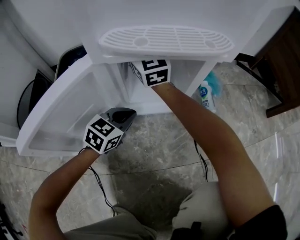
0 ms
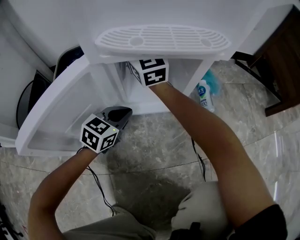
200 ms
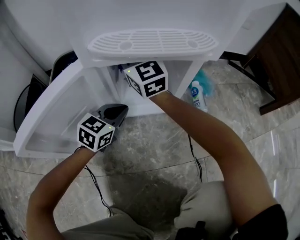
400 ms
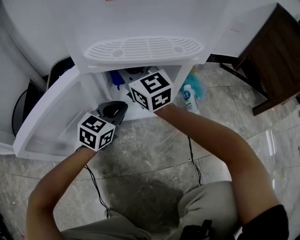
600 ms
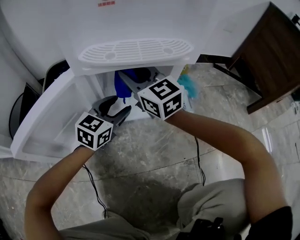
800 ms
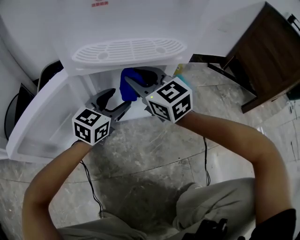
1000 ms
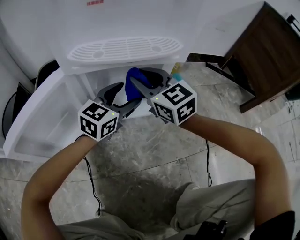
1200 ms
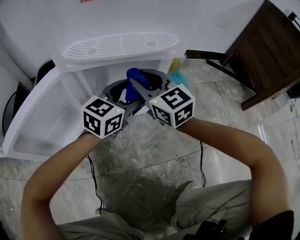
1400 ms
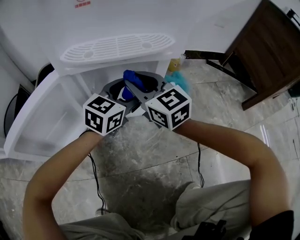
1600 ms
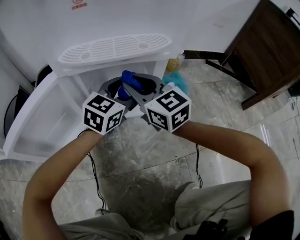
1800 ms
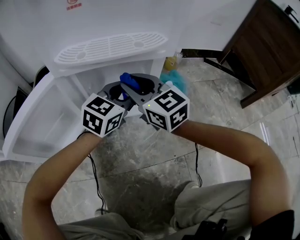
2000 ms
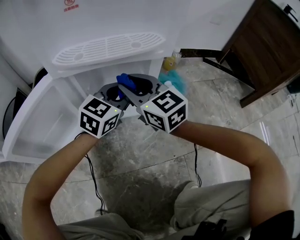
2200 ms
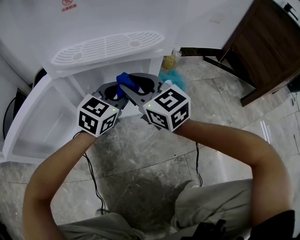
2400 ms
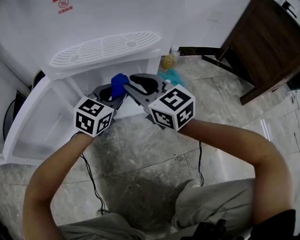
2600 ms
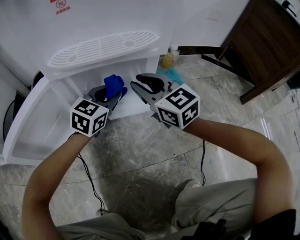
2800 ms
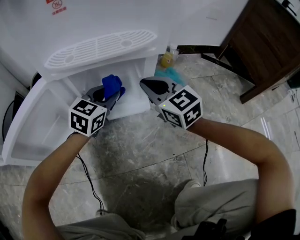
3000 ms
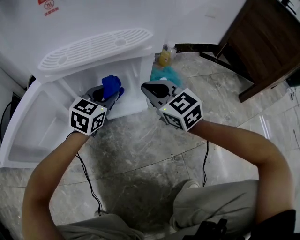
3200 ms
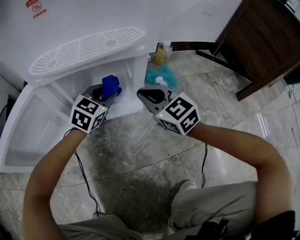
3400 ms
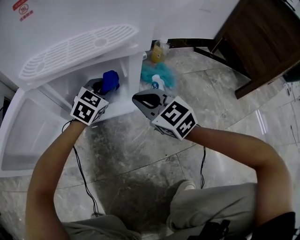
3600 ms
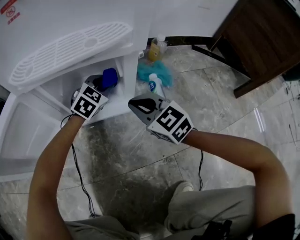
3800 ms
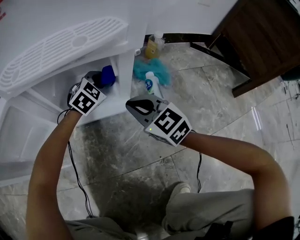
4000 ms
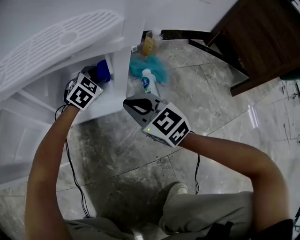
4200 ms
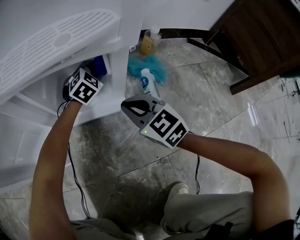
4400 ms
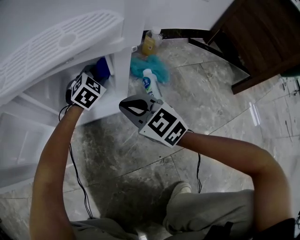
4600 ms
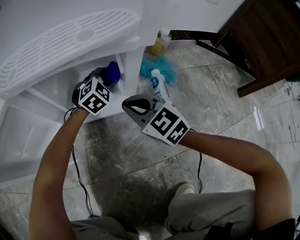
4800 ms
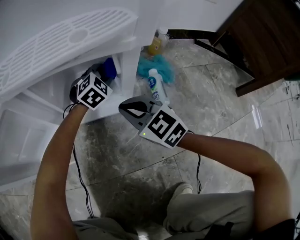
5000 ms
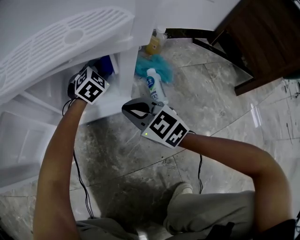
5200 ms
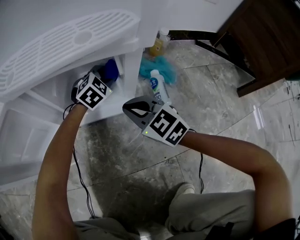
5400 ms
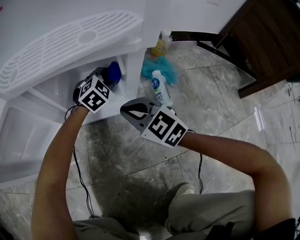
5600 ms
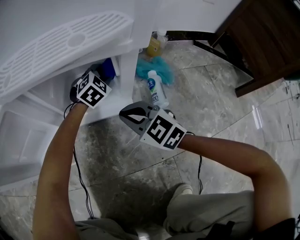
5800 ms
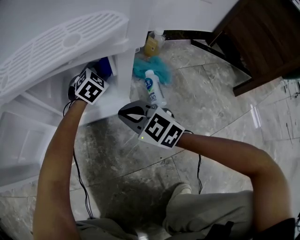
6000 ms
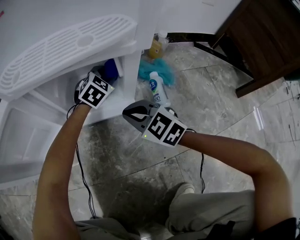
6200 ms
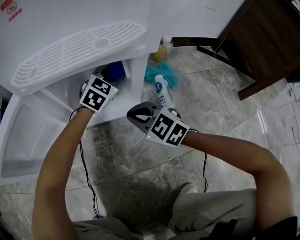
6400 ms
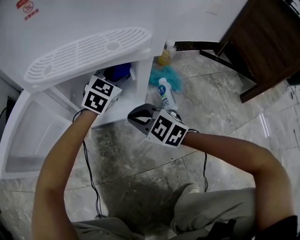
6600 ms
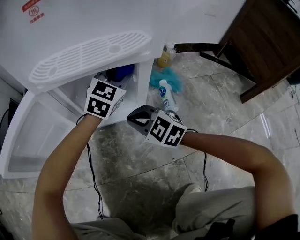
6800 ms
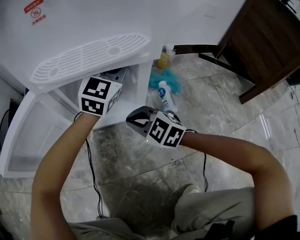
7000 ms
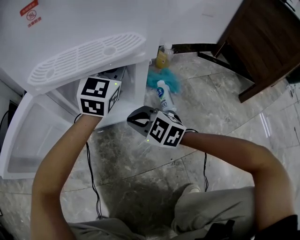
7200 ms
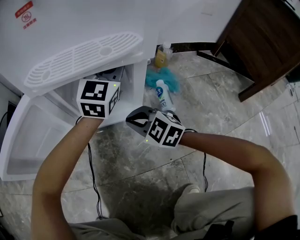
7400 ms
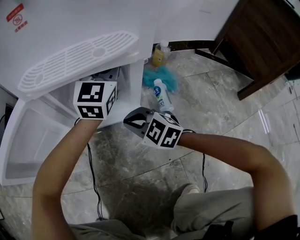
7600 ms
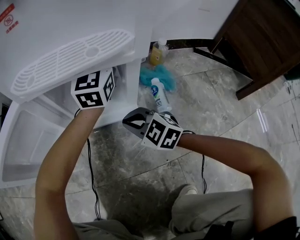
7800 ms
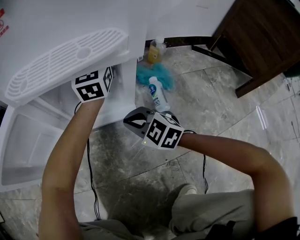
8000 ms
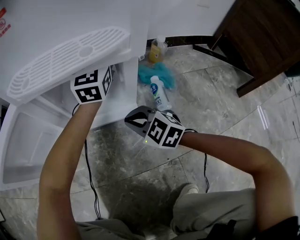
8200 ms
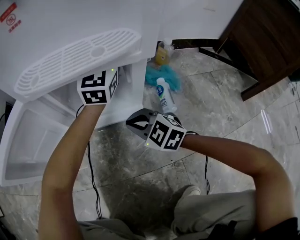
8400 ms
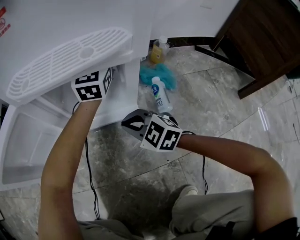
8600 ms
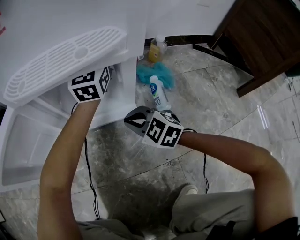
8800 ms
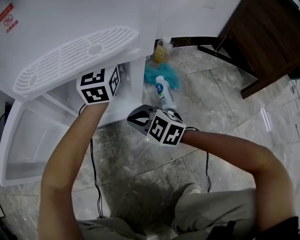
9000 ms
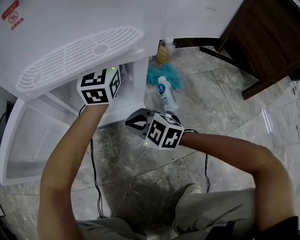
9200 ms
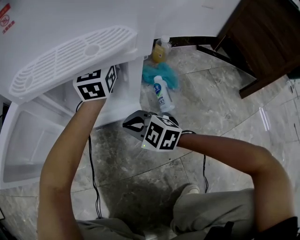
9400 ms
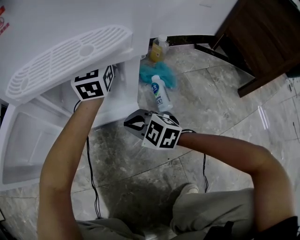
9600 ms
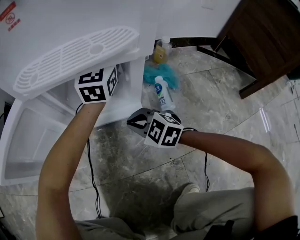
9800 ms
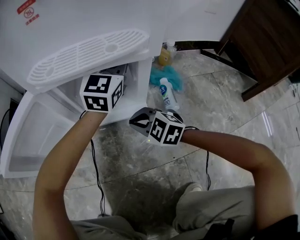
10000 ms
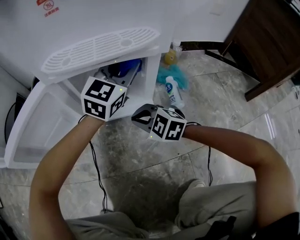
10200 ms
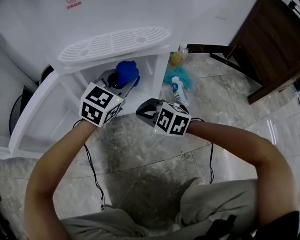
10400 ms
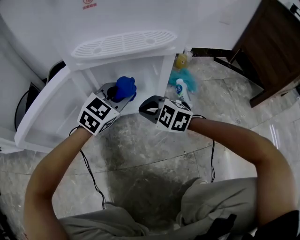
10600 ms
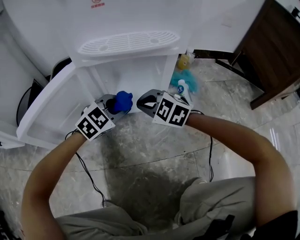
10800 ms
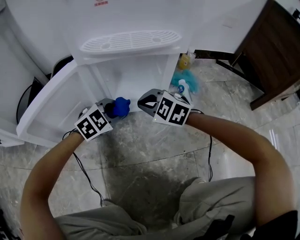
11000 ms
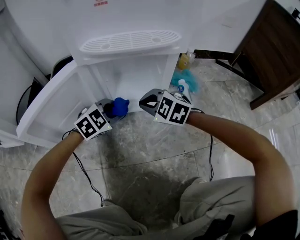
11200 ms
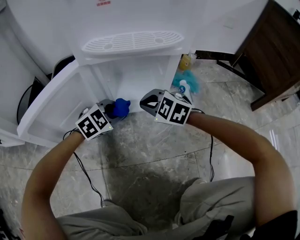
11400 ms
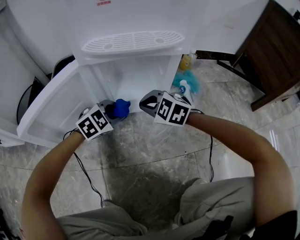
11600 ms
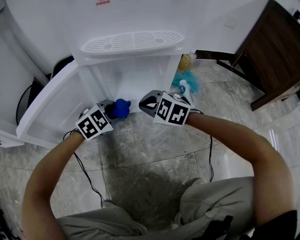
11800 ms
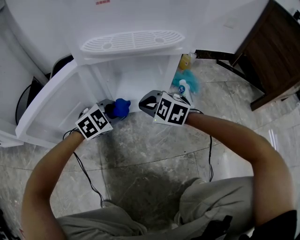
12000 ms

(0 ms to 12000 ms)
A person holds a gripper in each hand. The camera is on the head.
0 ms - 1600 ms: The right gripper heads to the right and backward, covering roughly 20 cm, and rotates roughly 20 degrees. Meanwhile the left gripper is displaced to the right, upward and forward by about 20 cm, and opens its fingers.
1600 ms - 3000 ms: The right gripper shifts approximately 5 cm to the right, while the left gripper shifts by some 5 cm, and closes.
3000 ms - 4400 ms: The right gripper travels downward by approximately 10 cm, while the left gripper travels forward, downward and to the right by approximately 20 cm, and turns by some 30 degrees.
4400 ms - 6000 ms: The left gripper moves forward and backward over some 5 cm, changing direction 3 times.
6000 ms - 7600 ms: The left gripper goes some 25 cm upward, and points its fingers some 40 degrees further upward.
9000 ms - 10400 ms: The left gripper is displaced backward, to the left and downward by about 15 cm, and changes its angle by about 30 degrees. Meanwhile the right gripper moves some 5 cm.
10400 ms - 12000 ms: The left gripper goes about 20 cm downward, to the left and backward, and rotates approximately 30 degrees.

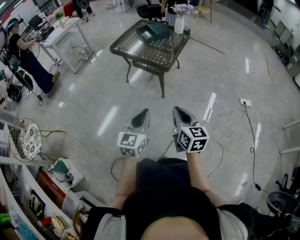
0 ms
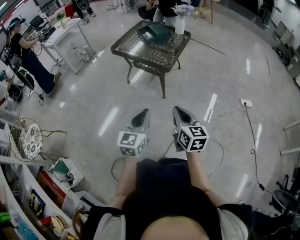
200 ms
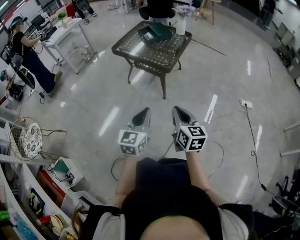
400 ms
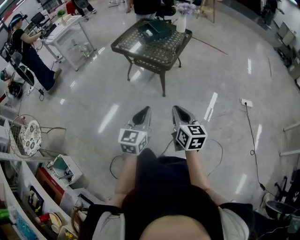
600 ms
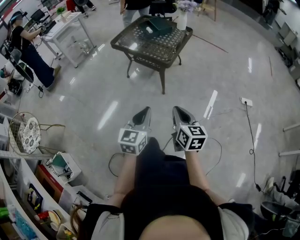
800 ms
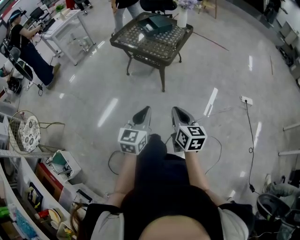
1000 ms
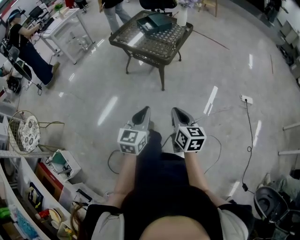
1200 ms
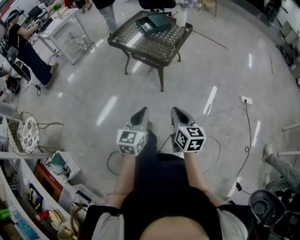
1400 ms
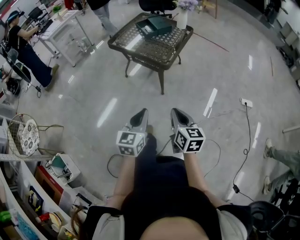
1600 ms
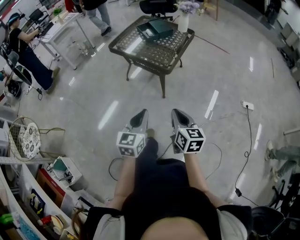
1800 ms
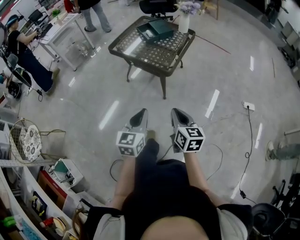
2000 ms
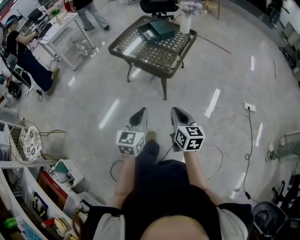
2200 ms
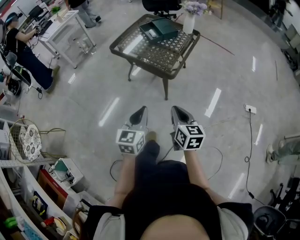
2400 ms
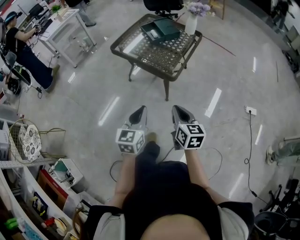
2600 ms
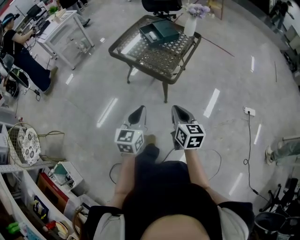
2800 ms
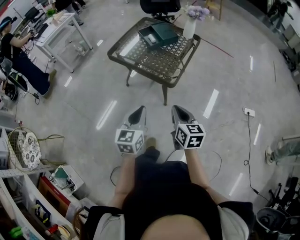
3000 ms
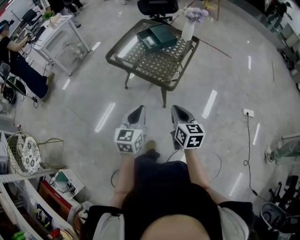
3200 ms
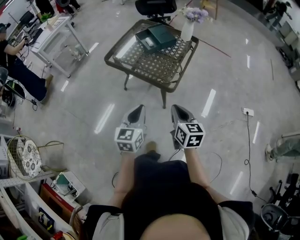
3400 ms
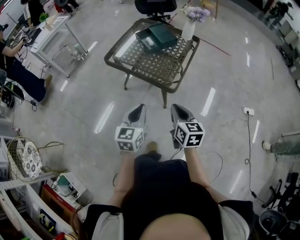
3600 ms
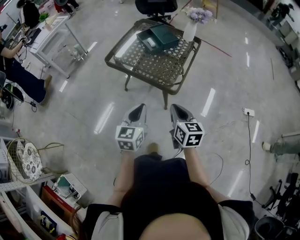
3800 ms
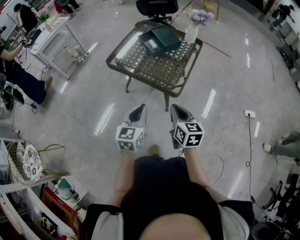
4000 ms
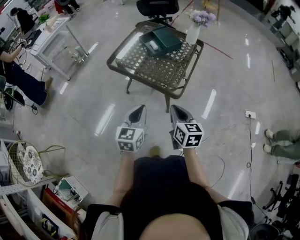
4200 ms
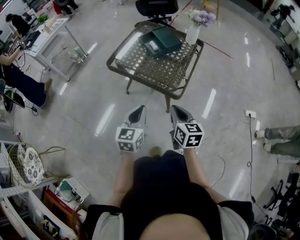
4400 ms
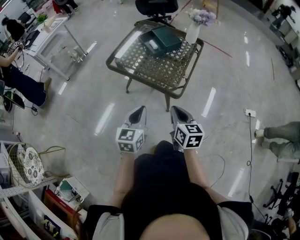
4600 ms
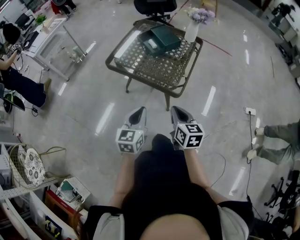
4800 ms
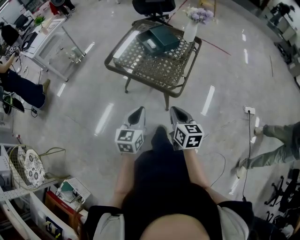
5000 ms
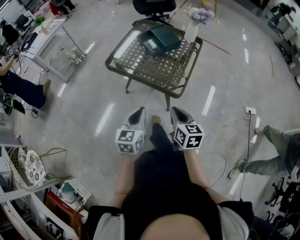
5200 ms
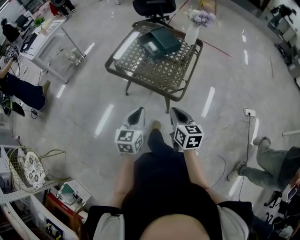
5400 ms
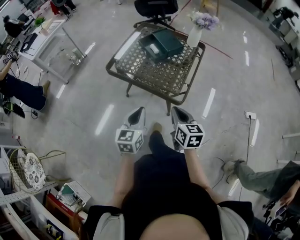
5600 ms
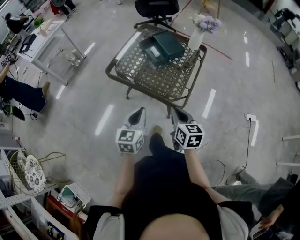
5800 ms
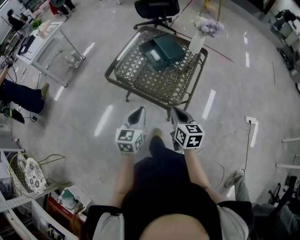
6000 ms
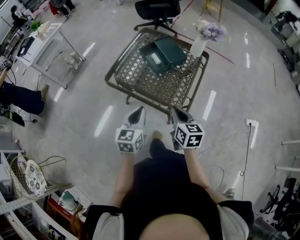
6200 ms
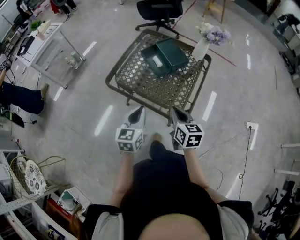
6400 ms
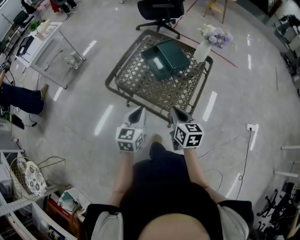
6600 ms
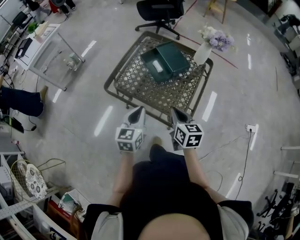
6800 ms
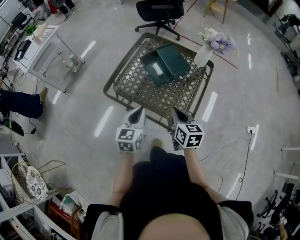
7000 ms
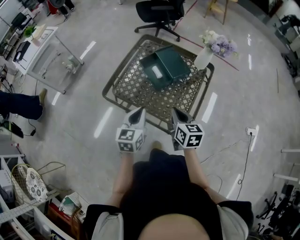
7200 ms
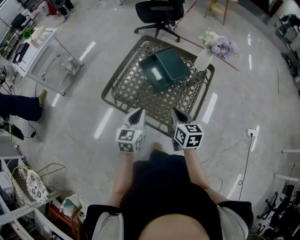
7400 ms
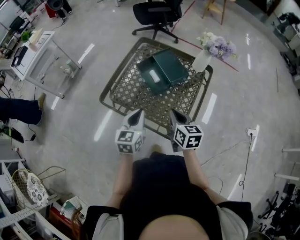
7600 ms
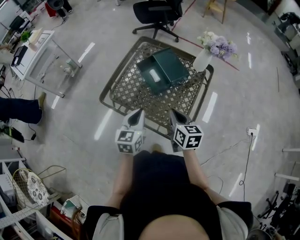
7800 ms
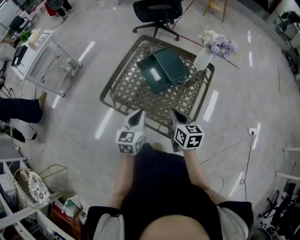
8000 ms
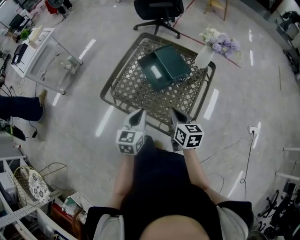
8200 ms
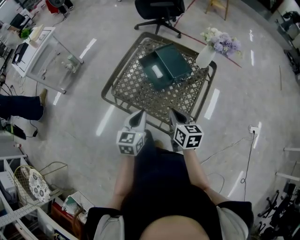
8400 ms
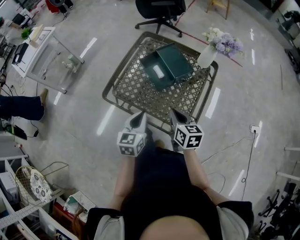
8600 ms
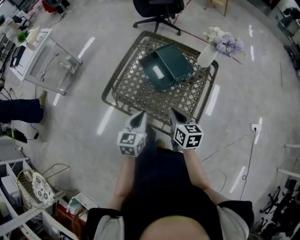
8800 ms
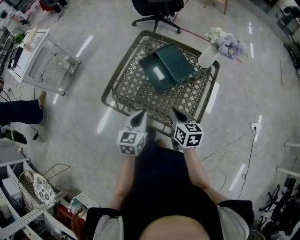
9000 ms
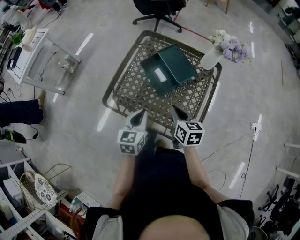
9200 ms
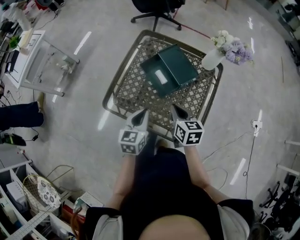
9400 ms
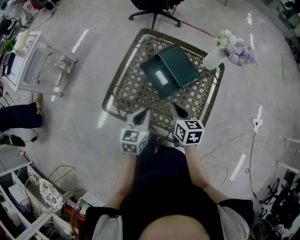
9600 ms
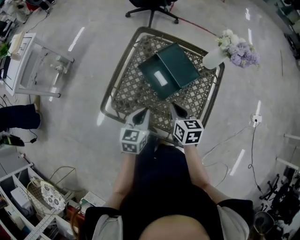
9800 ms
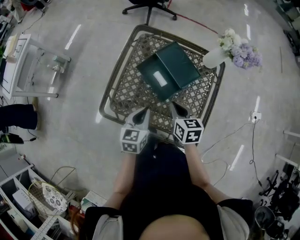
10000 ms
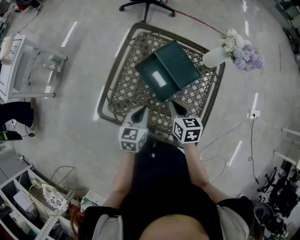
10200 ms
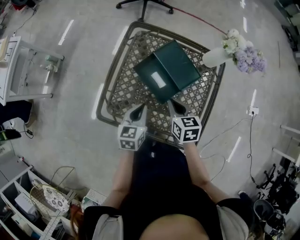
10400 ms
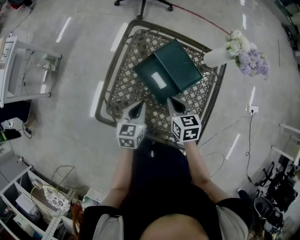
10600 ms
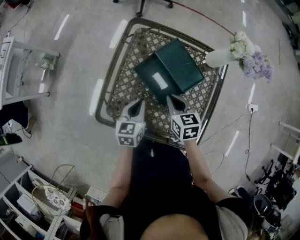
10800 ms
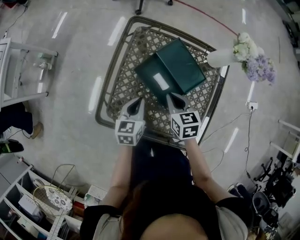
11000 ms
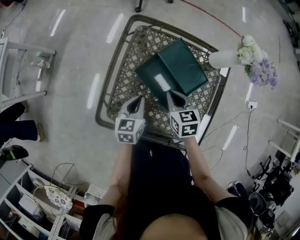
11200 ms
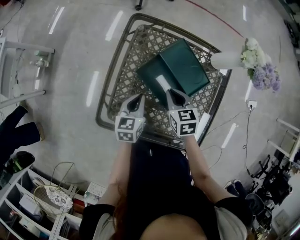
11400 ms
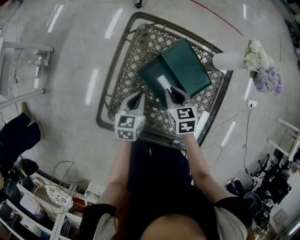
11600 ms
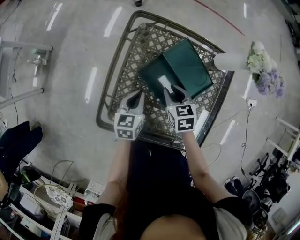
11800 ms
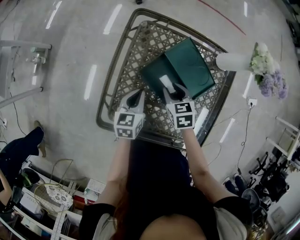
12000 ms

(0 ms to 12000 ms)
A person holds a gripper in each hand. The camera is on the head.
0 ms - 1600 ms: The right gripper moves about 5 cm. The left gripper ends up about 5 cm from where it was.
1600 ms - 3000 ms: Both grippers travel together forward, roughly 20 cm.
3000 ms - 4400 ms: The right gripper shifts approximately 10 cm forward and to the left; the left gripper shifts about 10 cm forward.
4400 ms - 6000 ms: Both grippers travel together forward, approximately 10 cm.
6000 ms - 7600 ms: The two grippers go approximately 20 cm forward.
7600 ms - 9000 ms: There are only small adjustments of the grippers.
9000 ms - 10400 ms: The left gripper is displaced forward and downward by about 15 cm, while the right gripper heads forward, covering some 15 cm.
10400 ms - 12000 ms: The two grippers go about 10 cm forward and downward. The right gripper opens.
